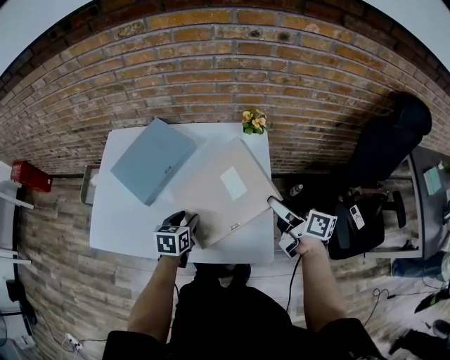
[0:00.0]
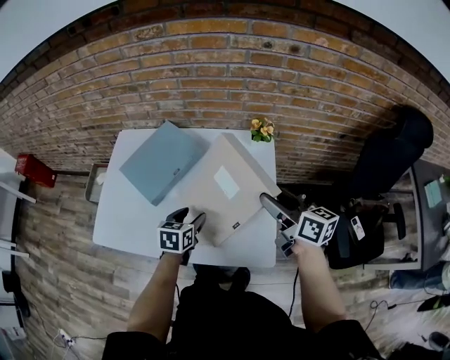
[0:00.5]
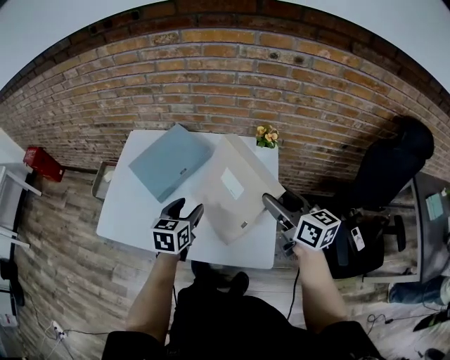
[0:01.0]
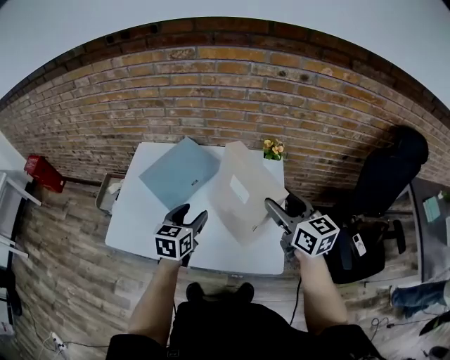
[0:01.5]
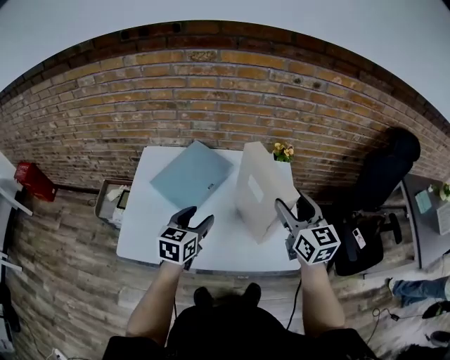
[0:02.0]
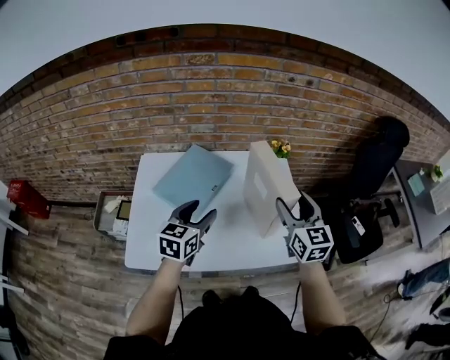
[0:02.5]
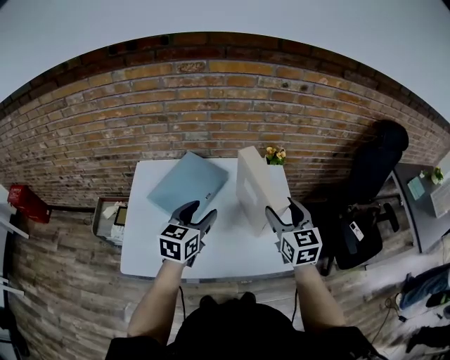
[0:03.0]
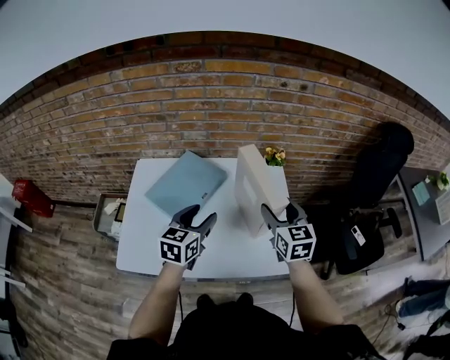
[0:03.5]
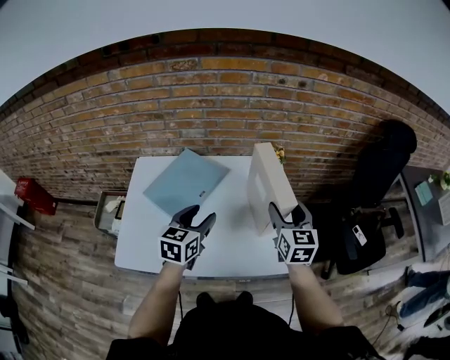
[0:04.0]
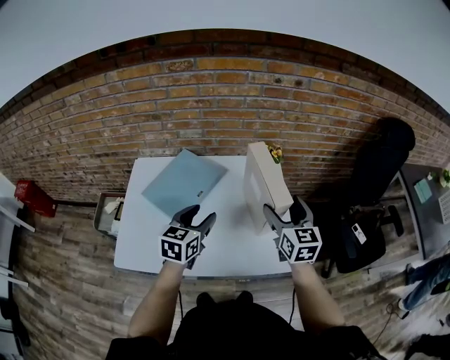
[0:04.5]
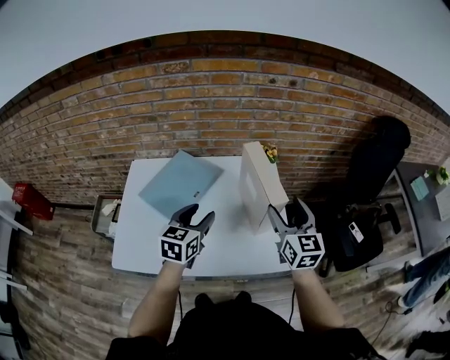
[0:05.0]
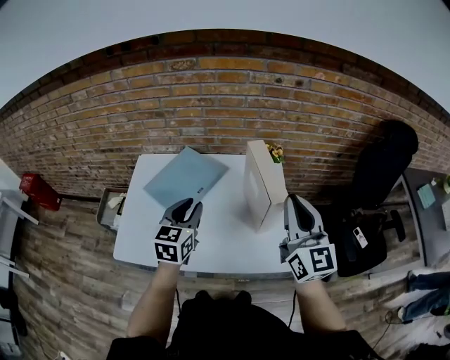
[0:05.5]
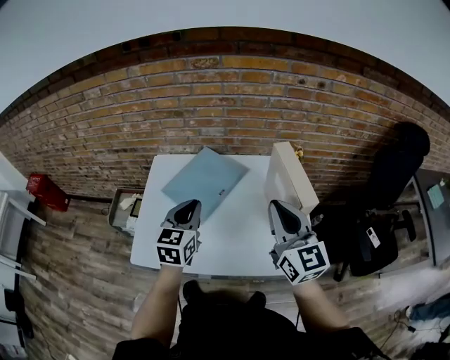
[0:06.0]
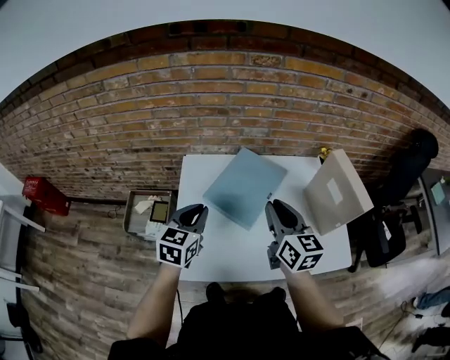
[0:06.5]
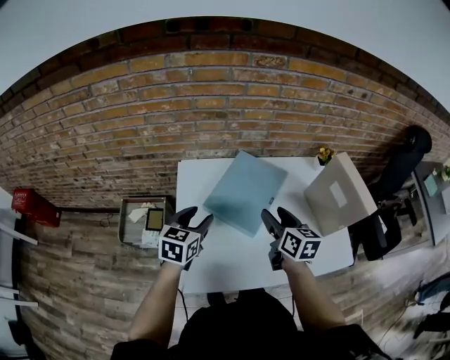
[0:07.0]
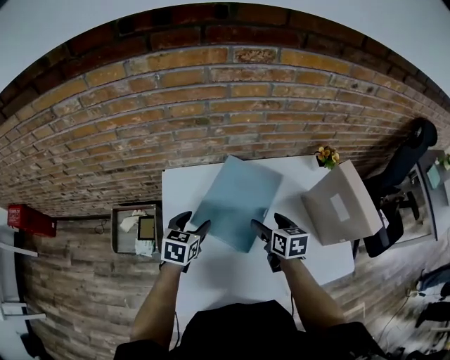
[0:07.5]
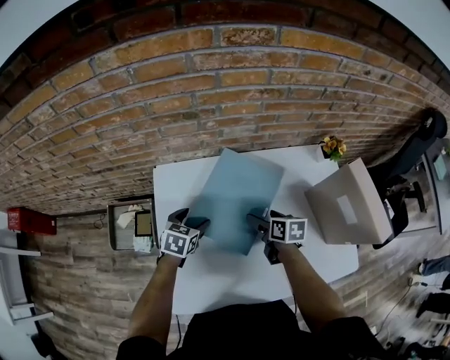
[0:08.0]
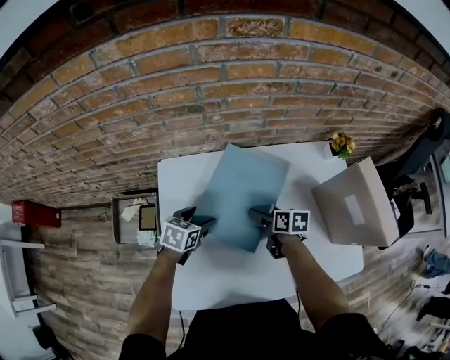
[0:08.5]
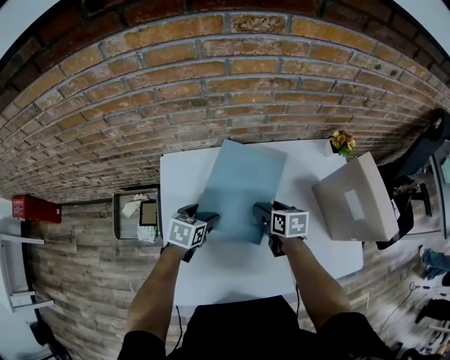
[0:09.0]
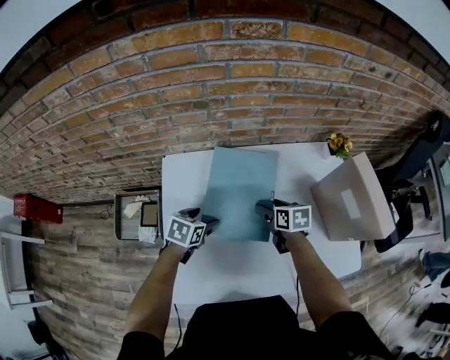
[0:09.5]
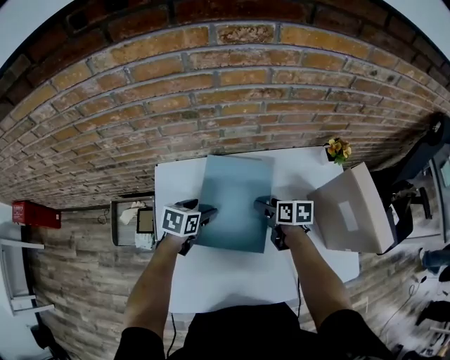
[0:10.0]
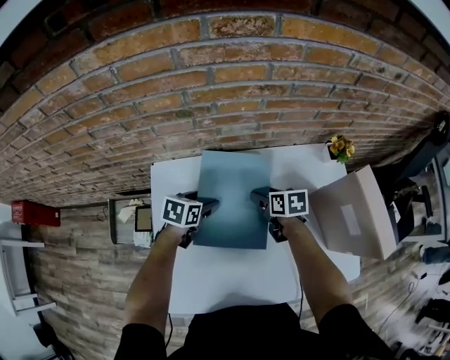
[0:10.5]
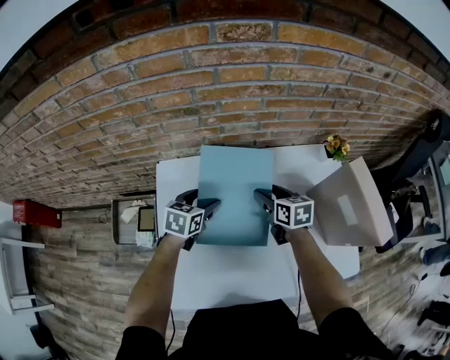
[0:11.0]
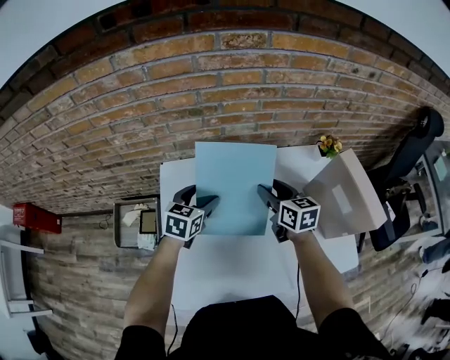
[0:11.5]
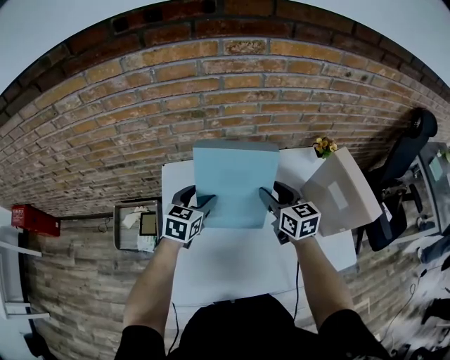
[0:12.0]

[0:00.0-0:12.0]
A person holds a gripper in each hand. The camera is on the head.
0:00.0 to 0:02.0: The two grippers go roughly 20 cm upward and to the left. The left gripper swivels some 20 degrees; the right gripper twists approximately 50 degrees counterclockwise, seen from behind.
0:02.0 to 0:04.0: The left gripper ends up about 5 cm from where it was. Meanwhile the right gripper shifts by some 5 cm.
0:04.0 to 0:06.0: The left gripper heads to the left, covering about 10 cm, and closes up, while the right gripper shifts about 15 cm to the left, upward and backward, changes its angle by roughly 30 degrees, and closes its fingers.
0:06.0 to 0:08.0: The two grippers go some 35 cm downward, to the left and forward. The left gripper tilts its fingers approximately 30 degrees downward, and opens its fingers; the right gripper tips its fingers downward by some 50 degrees, and opens up.
0:08.0 to 0:10.0: The right gripper heads forward, covering about 5 cm.
0:10.0 to 0:12.0: The two grippers go approximately 15 cm upward. The right gripper turns by about 40 degrees; the left gripper turns by about 30 degrees.

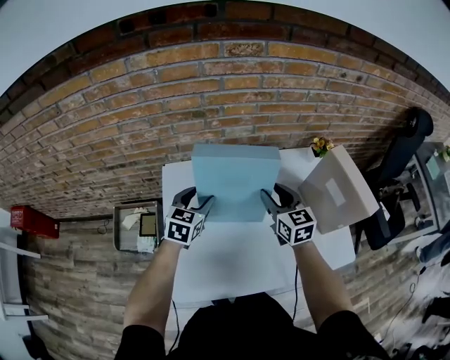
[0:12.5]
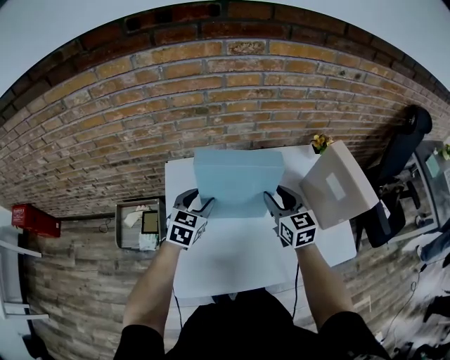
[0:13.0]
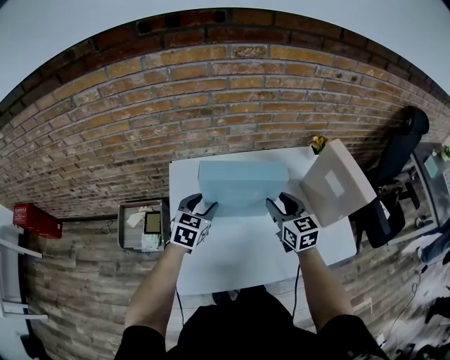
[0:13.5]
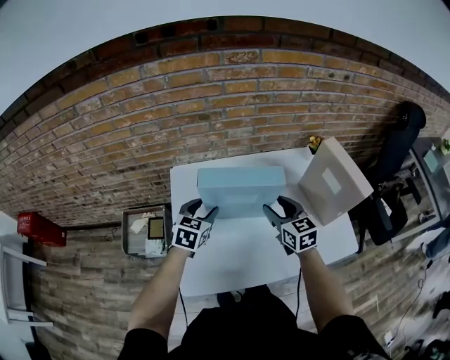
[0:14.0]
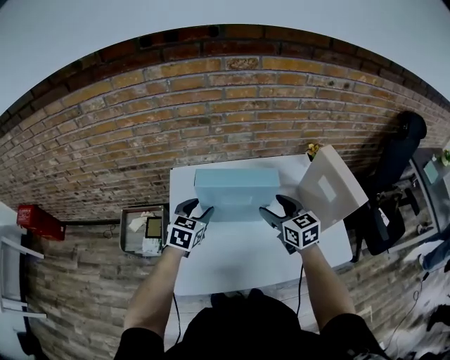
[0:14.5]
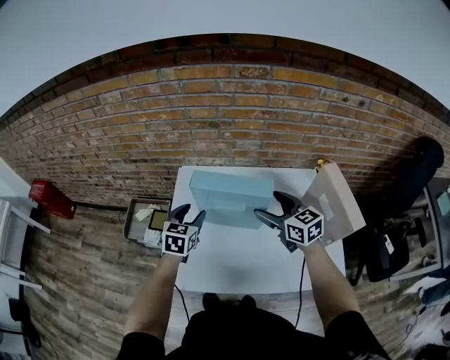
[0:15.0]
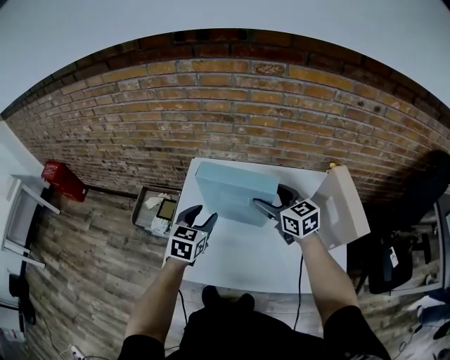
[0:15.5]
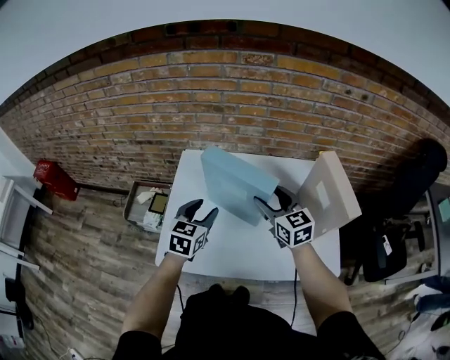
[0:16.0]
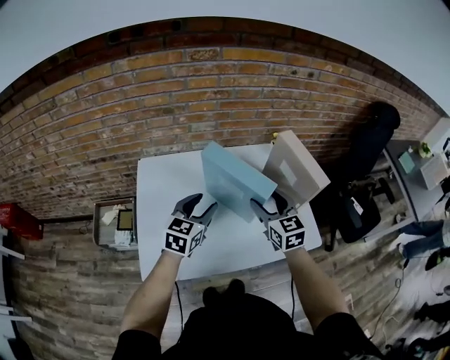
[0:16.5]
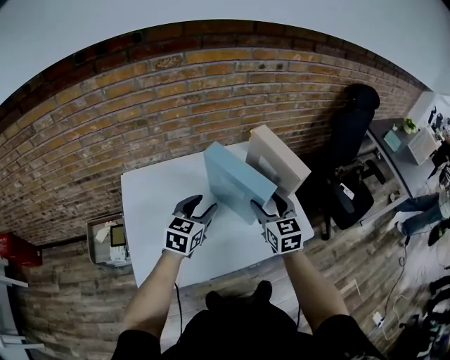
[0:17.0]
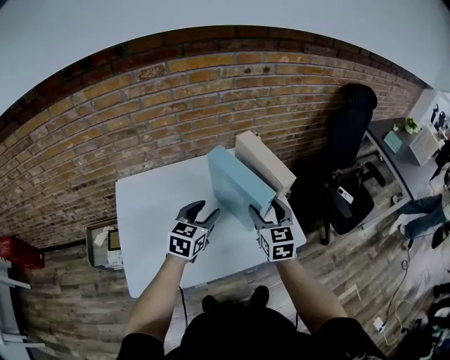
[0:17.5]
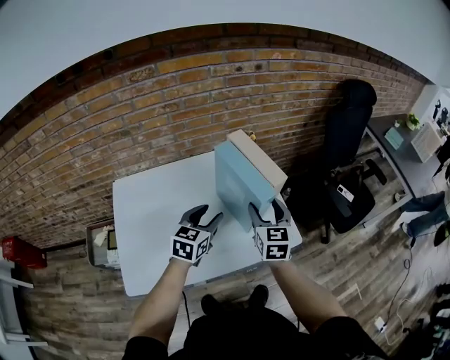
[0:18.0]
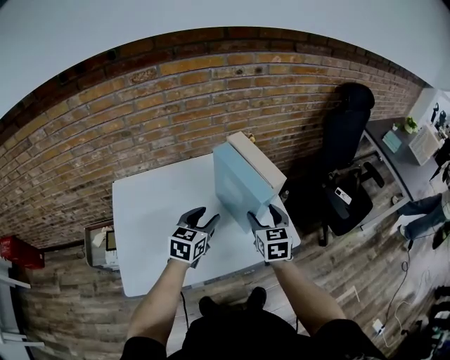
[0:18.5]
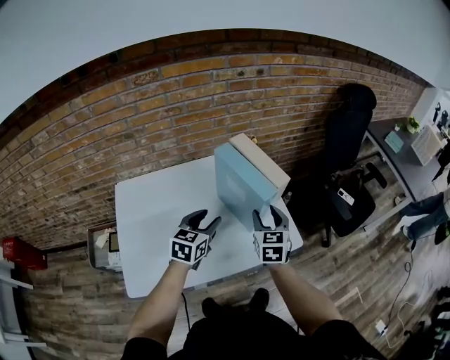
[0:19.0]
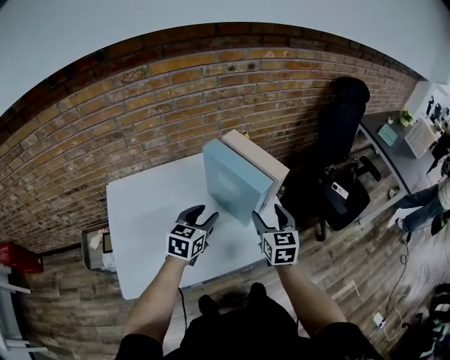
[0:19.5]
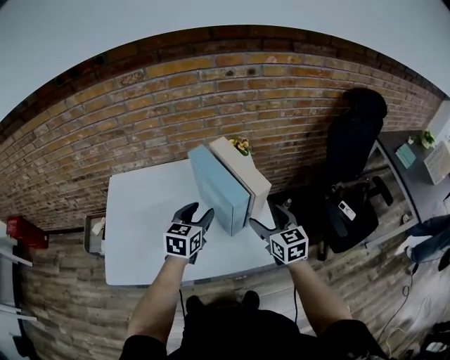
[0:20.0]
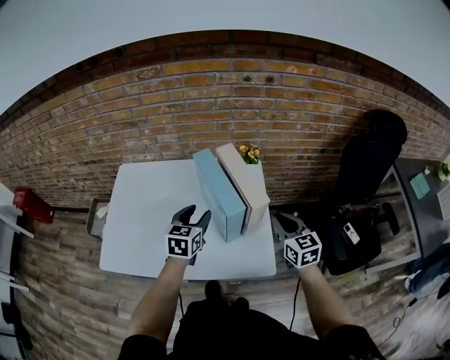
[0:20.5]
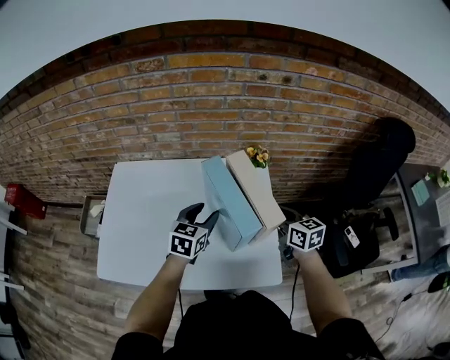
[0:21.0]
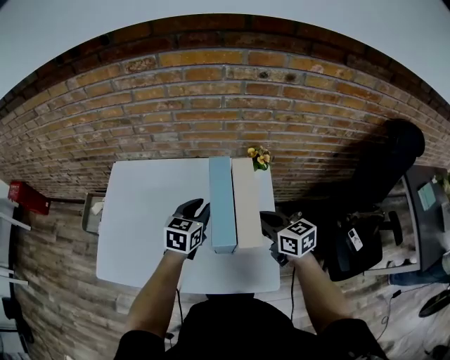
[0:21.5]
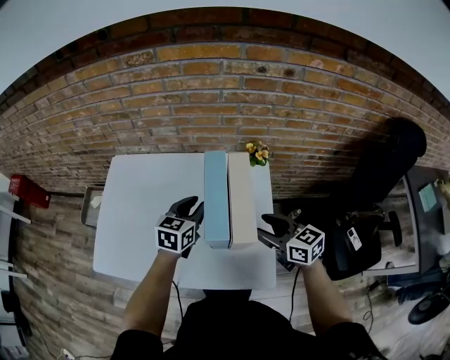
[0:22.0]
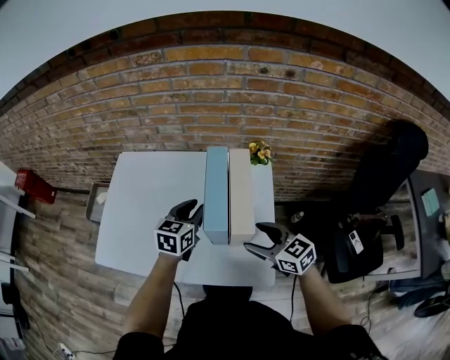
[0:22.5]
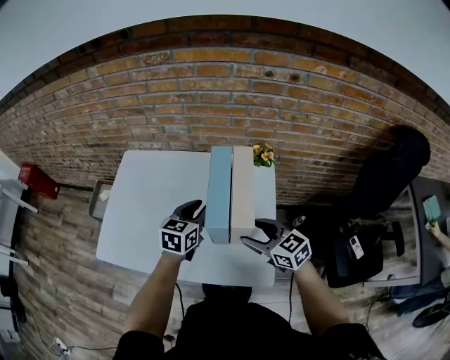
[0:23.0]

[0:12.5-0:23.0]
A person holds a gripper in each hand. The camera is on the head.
0:12.5 to 0:14.5: Both grippers travel together backward, about 5 cm.
0:14.5 to 0:16.5: The right gripper shifts by about 10 cm. The left gripper moves roughly 15 cm.
0:16.5 to 0:19.0: Both grippers travel together to the right, roughly 15 cm. The right gripper turns by some 30 degrees.
0:19.0 to 0:21.0: The right gripper moves some 15 cm, turns by roughly 50 degrees, and closes up; the left gripper changes place by approximately 10 cm.
0:21.0 to 0:23.0: The right gripper shifts about 10 cm to the left and backward, changes its angle by about 30 degrees, and opens its fingers.

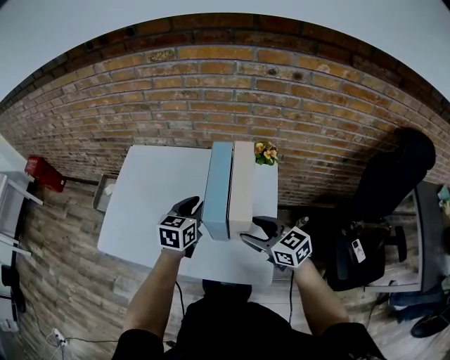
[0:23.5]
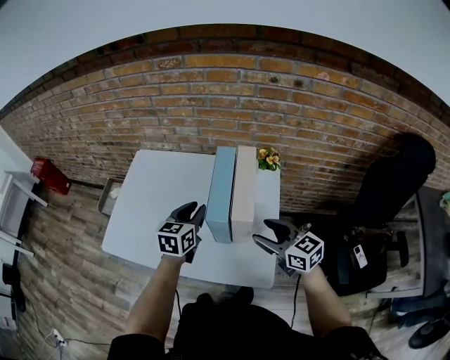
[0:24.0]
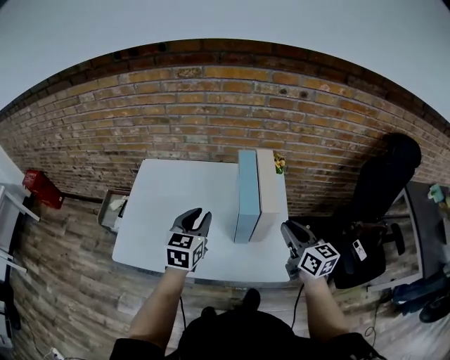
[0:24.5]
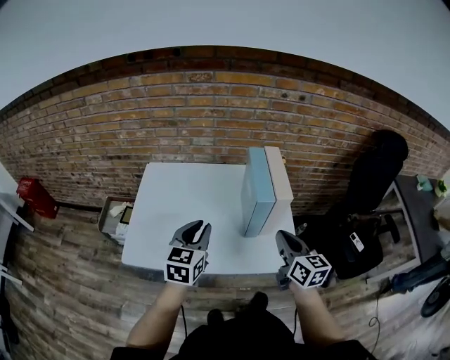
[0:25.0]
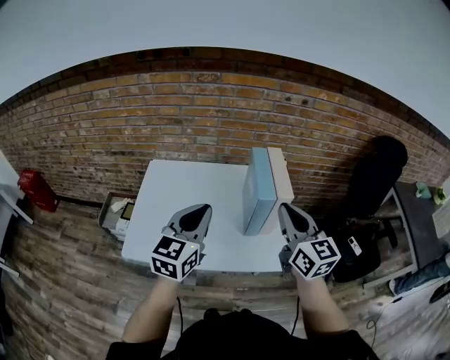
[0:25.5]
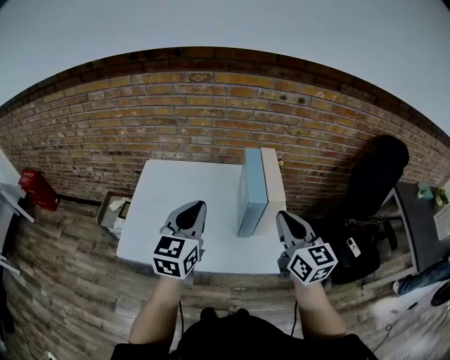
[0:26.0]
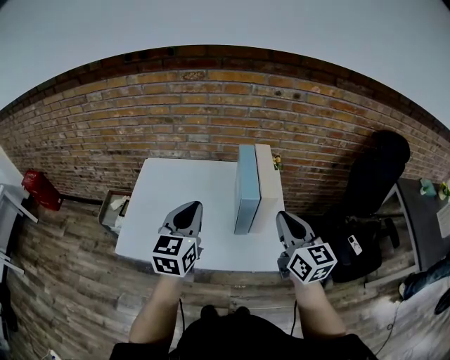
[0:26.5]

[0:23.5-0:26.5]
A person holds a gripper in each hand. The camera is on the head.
0:23.5 to 0:25.0: The left gripper shifts roughly 20 cm to the left, backward and upward; the right gripper moves backward and upward, roughly 10 cm, turns by about 40 degrees, and closes.
0:25.0 to 0:26.5: The two grippers go some 10 cm upward.

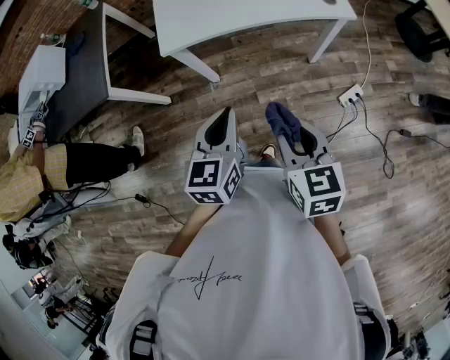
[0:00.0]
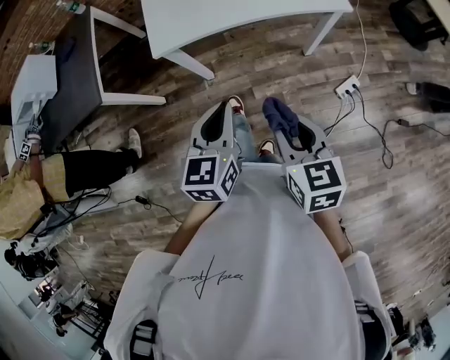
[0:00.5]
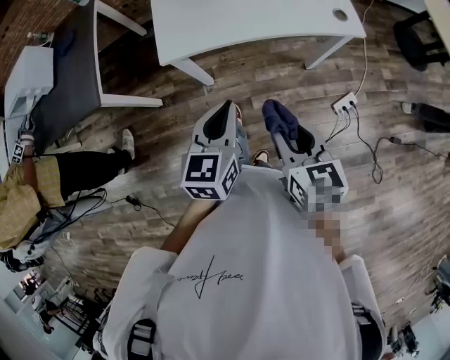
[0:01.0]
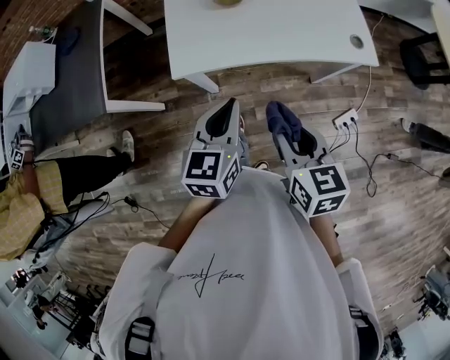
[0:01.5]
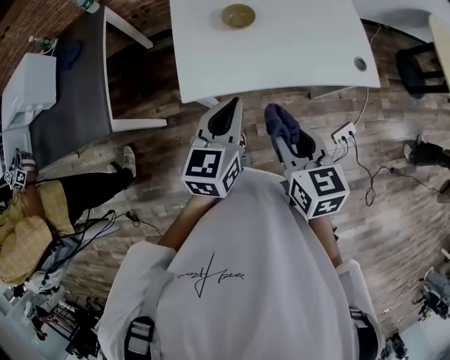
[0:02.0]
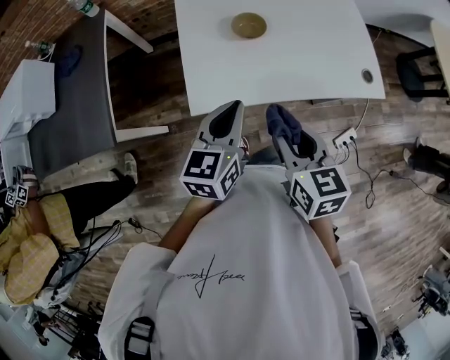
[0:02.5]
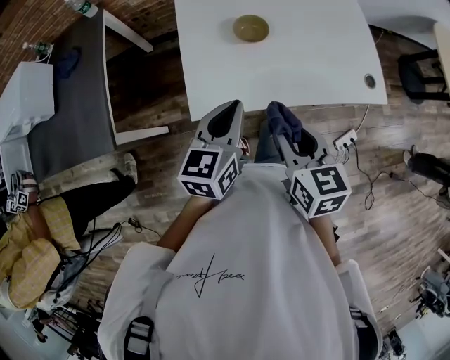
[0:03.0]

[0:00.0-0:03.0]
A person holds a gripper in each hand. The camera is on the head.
0:00.0 to 0:01.5: The grippers both shift forward by some 20 cm.
0:01.5 to 0:03.0: Both grippers travel together forward and to the left, some 15 cm.
